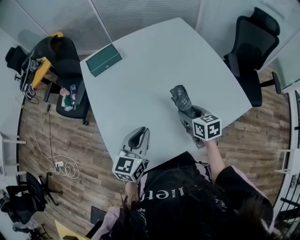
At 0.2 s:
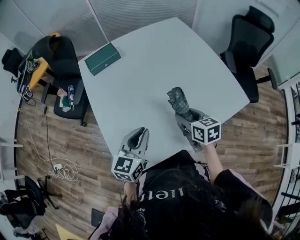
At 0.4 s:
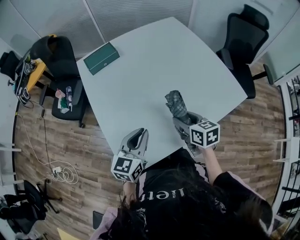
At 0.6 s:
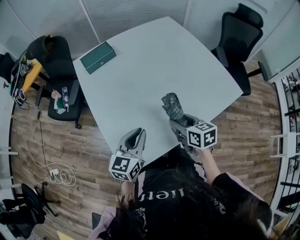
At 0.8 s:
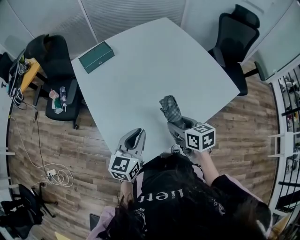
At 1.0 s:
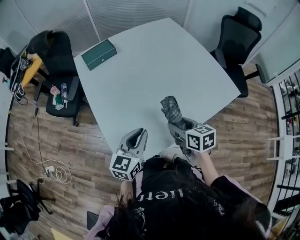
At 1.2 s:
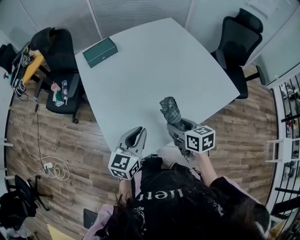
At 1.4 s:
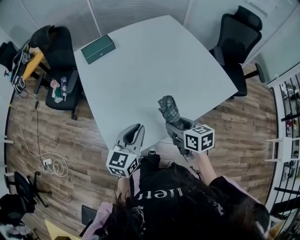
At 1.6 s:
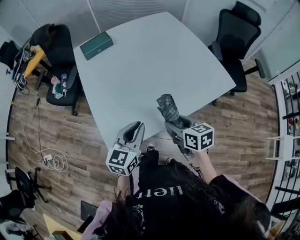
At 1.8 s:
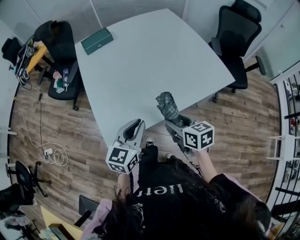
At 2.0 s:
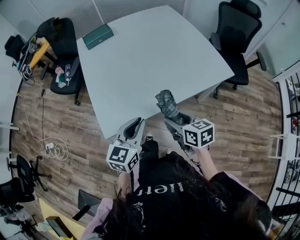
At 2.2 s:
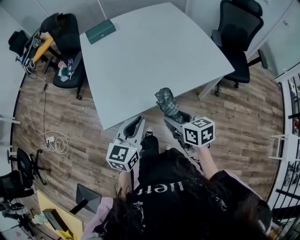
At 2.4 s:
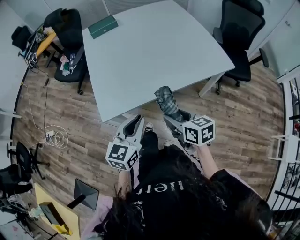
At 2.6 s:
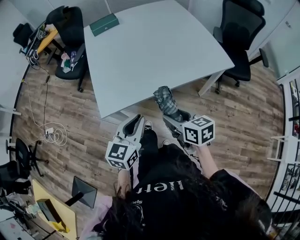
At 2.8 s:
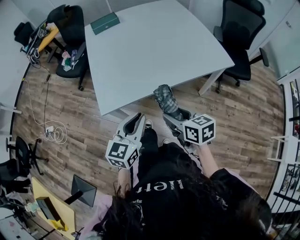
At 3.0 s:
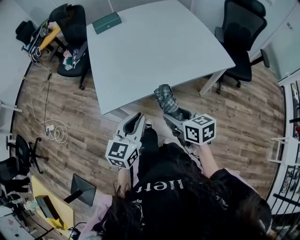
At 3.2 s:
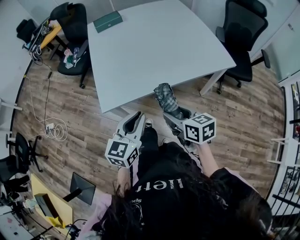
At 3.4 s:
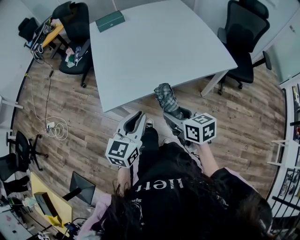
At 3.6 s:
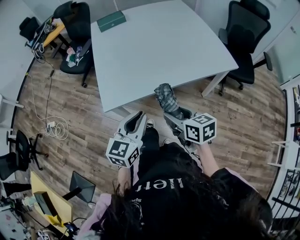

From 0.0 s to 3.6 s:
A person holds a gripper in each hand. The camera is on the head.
From 0.0 s to 1.8 s: The two grippers go some 20 cm backward.
From 1.8 s to 3.6 s: The grippers both shift backward by approximately 15 cm.

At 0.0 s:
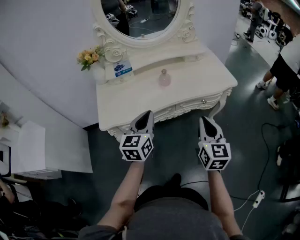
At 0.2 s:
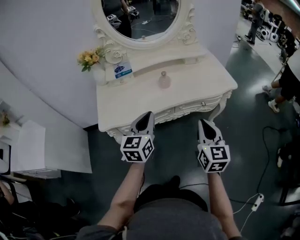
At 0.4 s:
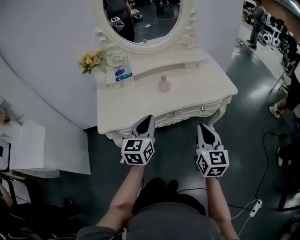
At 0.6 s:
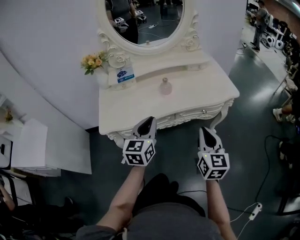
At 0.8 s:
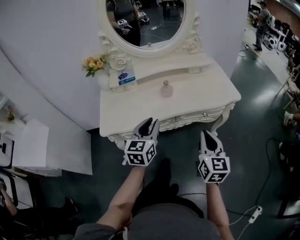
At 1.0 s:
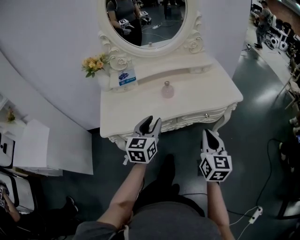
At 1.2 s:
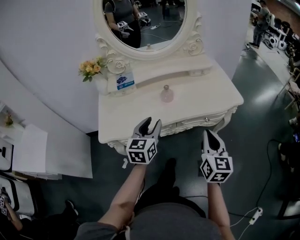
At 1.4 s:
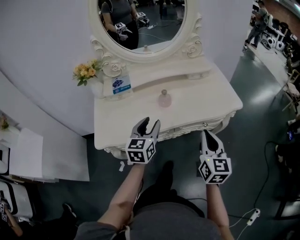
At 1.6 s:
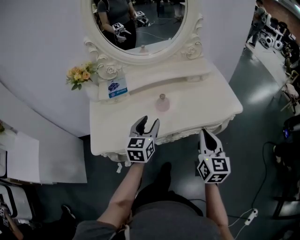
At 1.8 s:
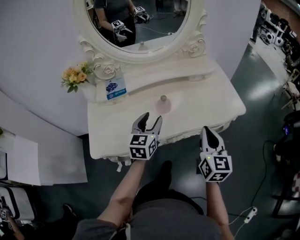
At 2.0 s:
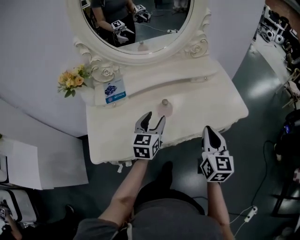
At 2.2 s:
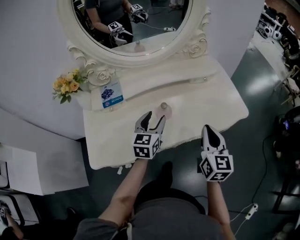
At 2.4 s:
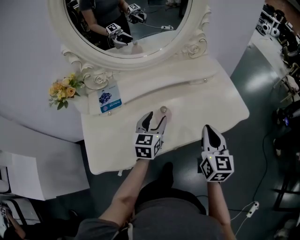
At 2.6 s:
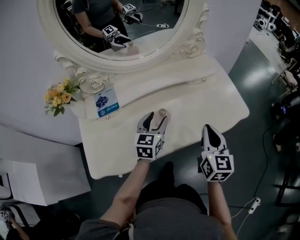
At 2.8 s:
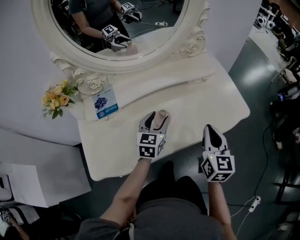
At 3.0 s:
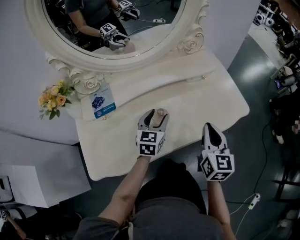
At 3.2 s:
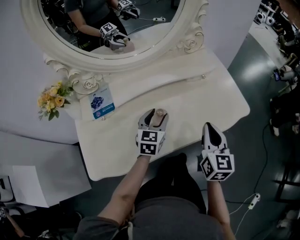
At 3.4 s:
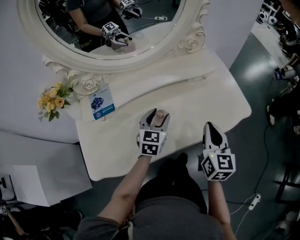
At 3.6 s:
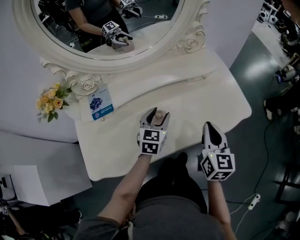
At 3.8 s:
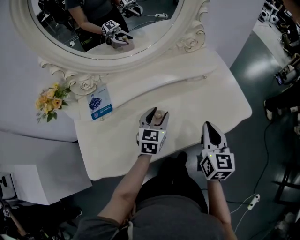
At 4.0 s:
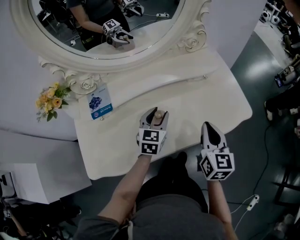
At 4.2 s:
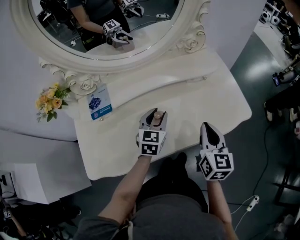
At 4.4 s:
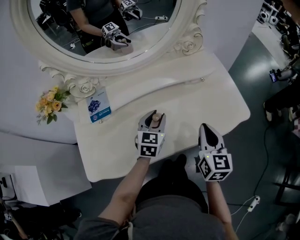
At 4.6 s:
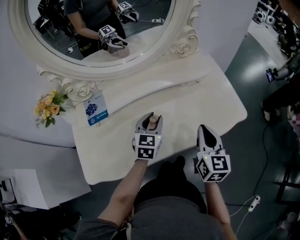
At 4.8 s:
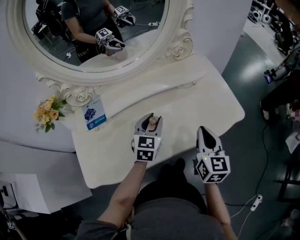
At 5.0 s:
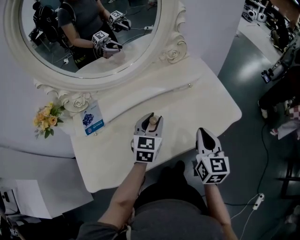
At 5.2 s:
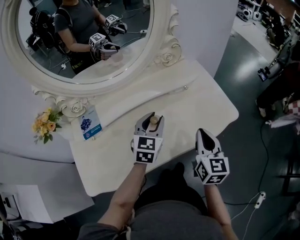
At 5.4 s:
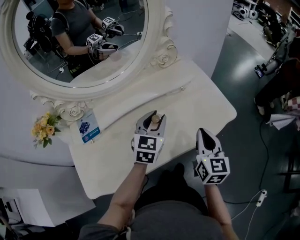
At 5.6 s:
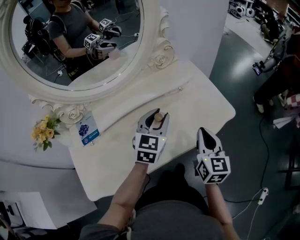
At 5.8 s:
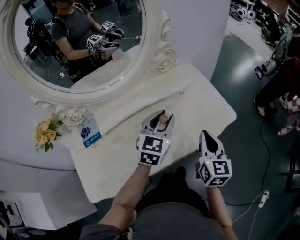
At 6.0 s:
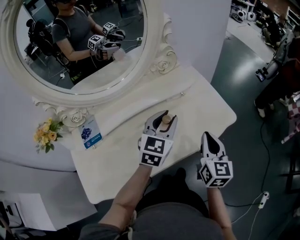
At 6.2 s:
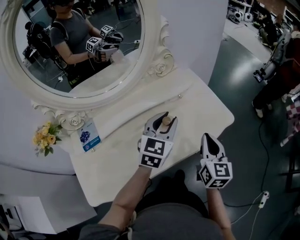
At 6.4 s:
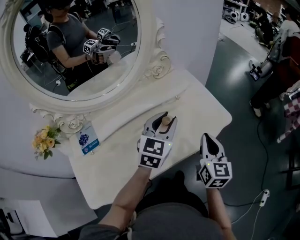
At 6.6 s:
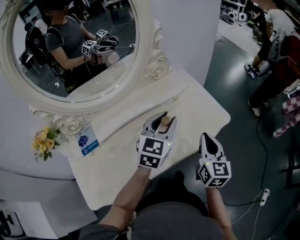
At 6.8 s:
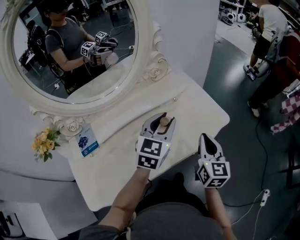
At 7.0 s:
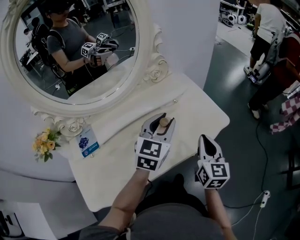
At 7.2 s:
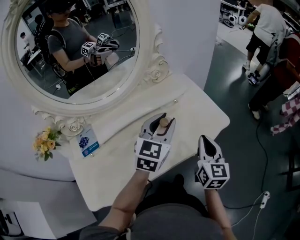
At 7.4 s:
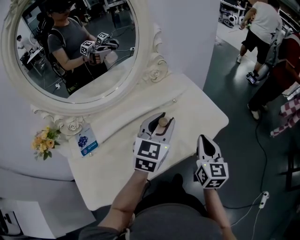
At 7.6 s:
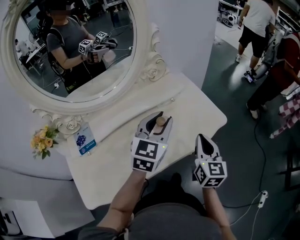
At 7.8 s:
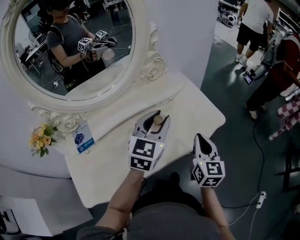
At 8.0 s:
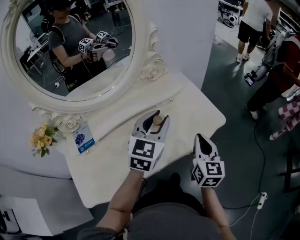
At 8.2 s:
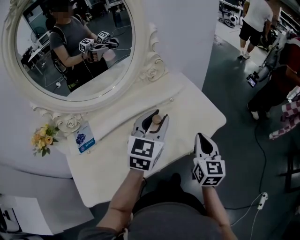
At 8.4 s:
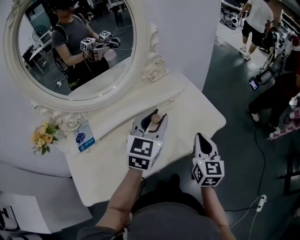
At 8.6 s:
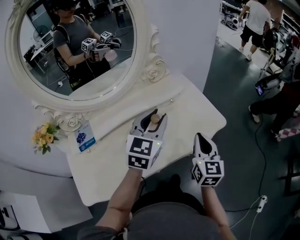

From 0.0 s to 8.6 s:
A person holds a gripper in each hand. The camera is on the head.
From 0.0 s to 1.4 s: The two grippers go approximately 10 cm forward. The left gripper opens its fingers.
From 1.4 s to 2.8 s: The grippers both shift forward by roughly 20 cm.
From 2.8 s to 4.4 s: The left gripper closes its fingers.
From 4.4 s to 5.8 s: The right gripper is displaced to the right by about 5 cm, while the left gripper is displaced upward and to the right by some 15 cm.
From 5.8 s to 7.2 s: The left gripper goes approximately 5 cm upward.
From 7.2 s to 8.6 s: The grippers make only small movements.

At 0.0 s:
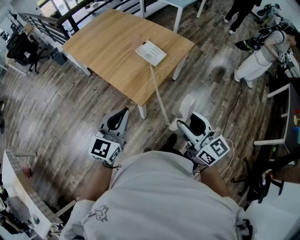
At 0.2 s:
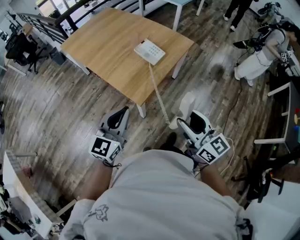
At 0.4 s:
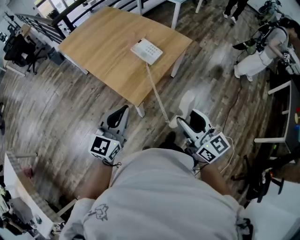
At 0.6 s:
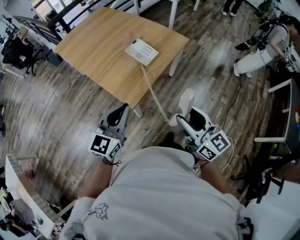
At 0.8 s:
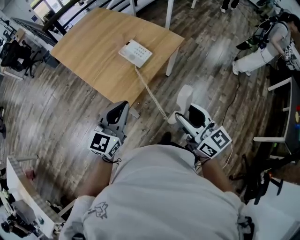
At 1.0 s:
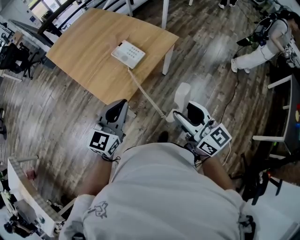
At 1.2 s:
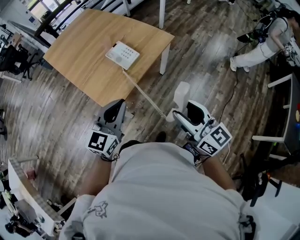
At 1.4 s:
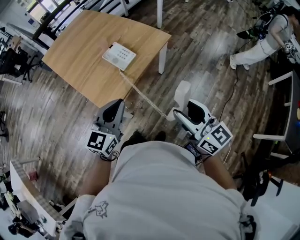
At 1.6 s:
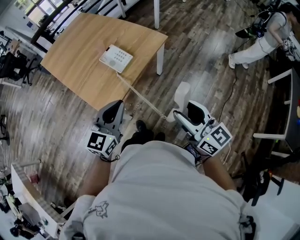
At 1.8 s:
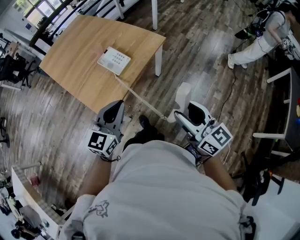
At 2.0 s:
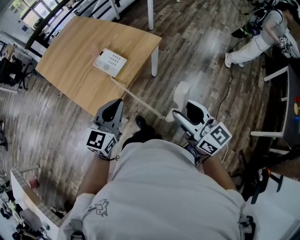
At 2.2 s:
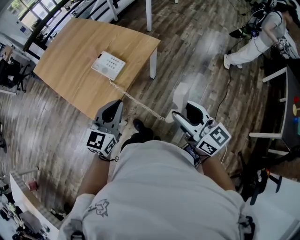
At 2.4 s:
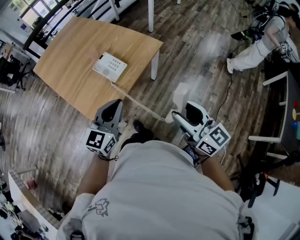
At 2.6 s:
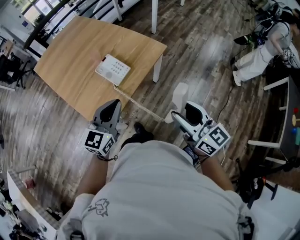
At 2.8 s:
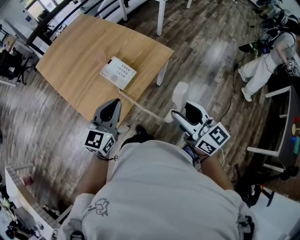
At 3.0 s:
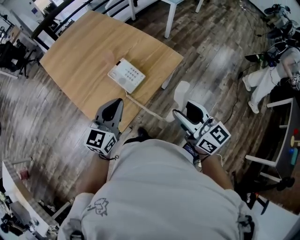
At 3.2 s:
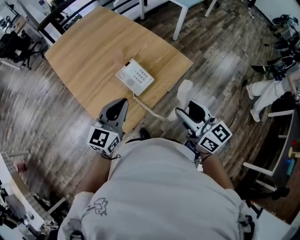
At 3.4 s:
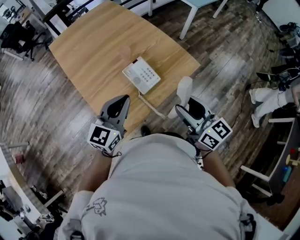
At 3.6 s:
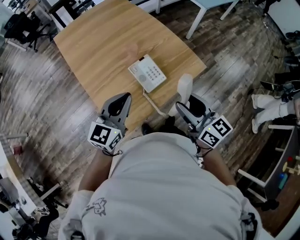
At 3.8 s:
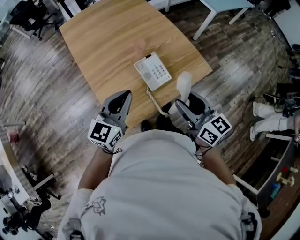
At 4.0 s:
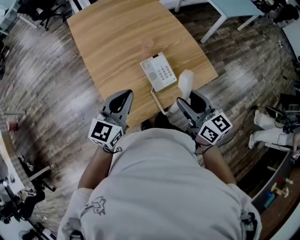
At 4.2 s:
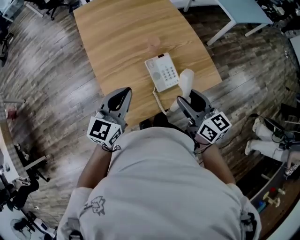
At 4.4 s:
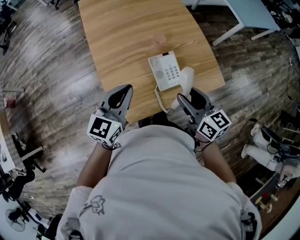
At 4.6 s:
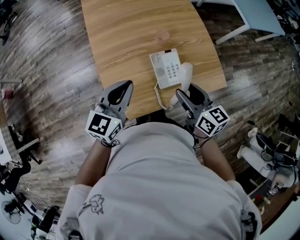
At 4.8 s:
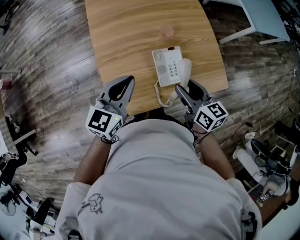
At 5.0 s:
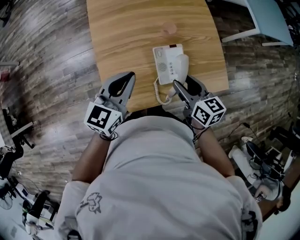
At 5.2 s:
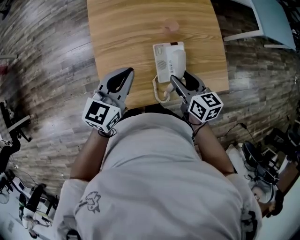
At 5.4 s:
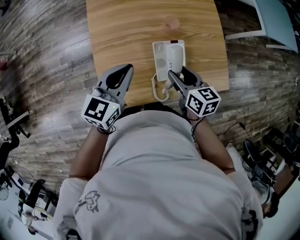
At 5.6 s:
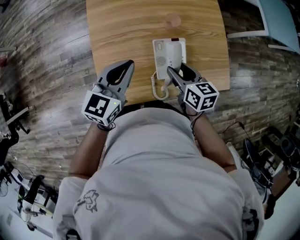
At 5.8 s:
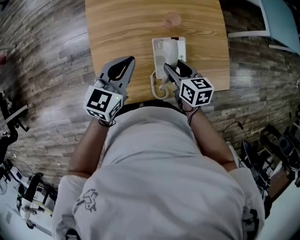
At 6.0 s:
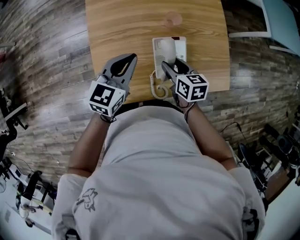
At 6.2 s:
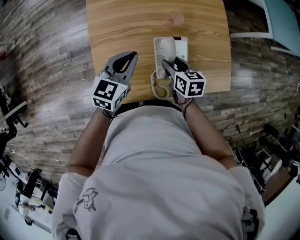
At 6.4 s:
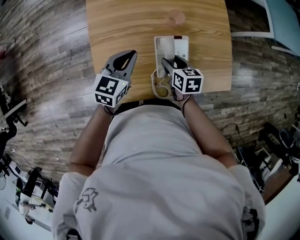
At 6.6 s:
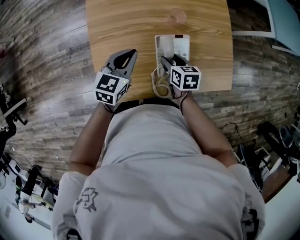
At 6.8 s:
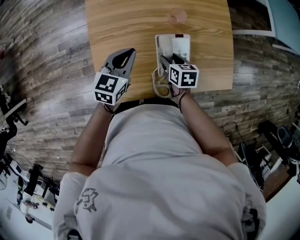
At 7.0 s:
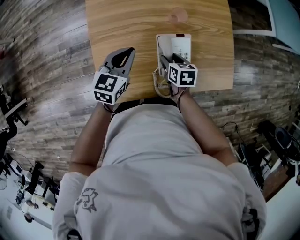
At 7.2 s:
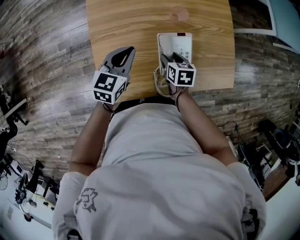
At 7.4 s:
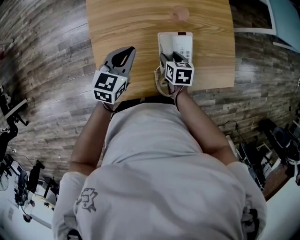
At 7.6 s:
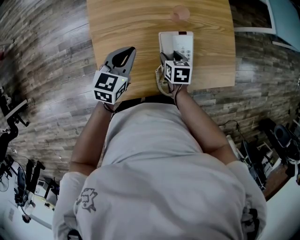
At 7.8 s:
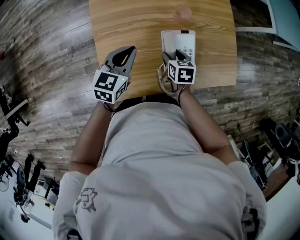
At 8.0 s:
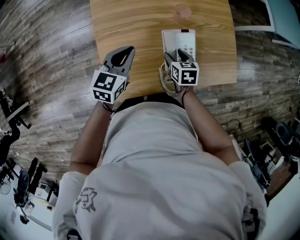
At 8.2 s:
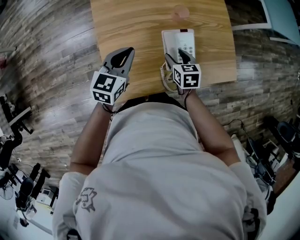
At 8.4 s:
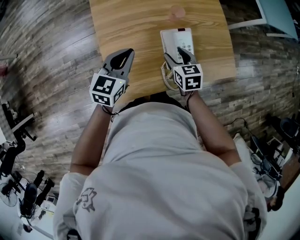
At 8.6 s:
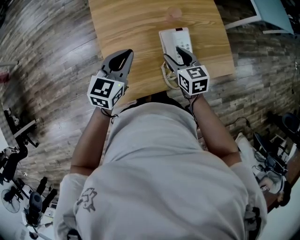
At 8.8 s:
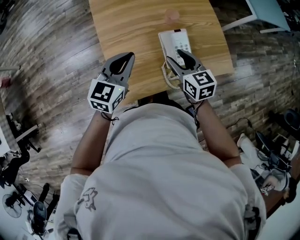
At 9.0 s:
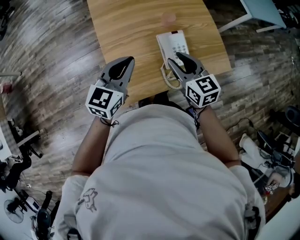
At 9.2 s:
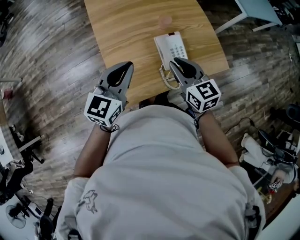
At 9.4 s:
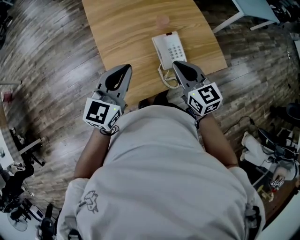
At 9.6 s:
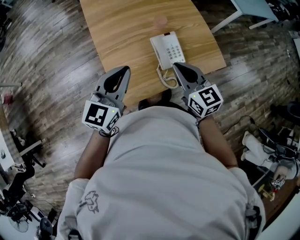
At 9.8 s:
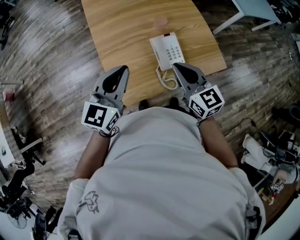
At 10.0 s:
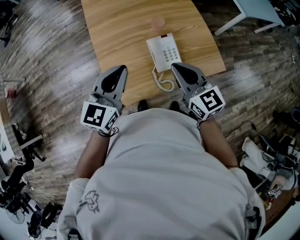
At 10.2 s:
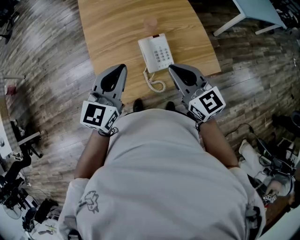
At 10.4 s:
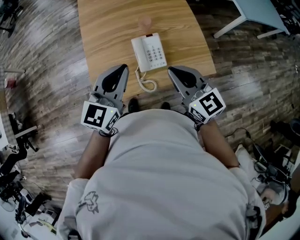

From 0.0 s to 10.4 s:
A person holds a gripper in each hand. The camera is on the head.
From 0.0 s to 1.4 s: Both grippers travel together to the right and forward, about 25 cm.
From 1.4 s to 3.0 s: Both grippers move forward, some 20 cm.
From 3.0 s to 4.4 s: The right gripper goes approximately 25 cm forward, to the left and downward, and rotates some 30 degrees. Meanwhile the left gripper is displaced to the left and forward by about 15 cm, and swivels roughly 20 degrees.
From 4.4 s to 6.0 s: The left gripper goes about 15 cm downward and forward, while the right gripper is displaced downward and forward by roughly 20 cm, and swivels roughly 30 degrees.
From 6.0 s to 7.4 s: Both grippers travel together downward, some 10 cm.
From 7.4 s to 9.0 s: Both grippers move upward and backward, some 20 cm. The right gripper points its fingers approximately 30 degrees further upward.
From 9.0 s to 10.4 s: The right gripper heads to the right, upward and backward, covering roughly 15 cm, and closes; the left gripper goes roughly 15 cm to the right.

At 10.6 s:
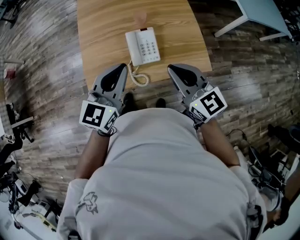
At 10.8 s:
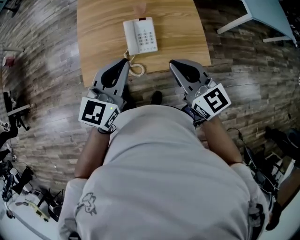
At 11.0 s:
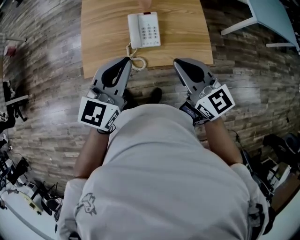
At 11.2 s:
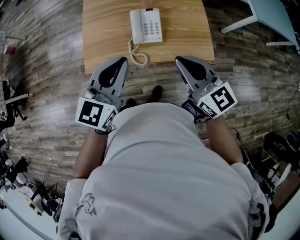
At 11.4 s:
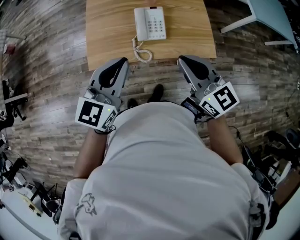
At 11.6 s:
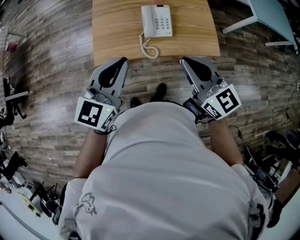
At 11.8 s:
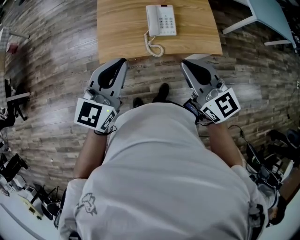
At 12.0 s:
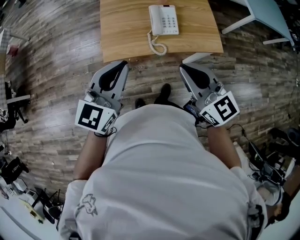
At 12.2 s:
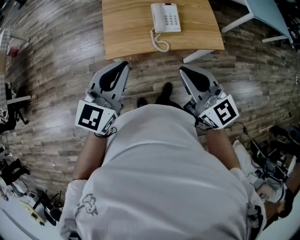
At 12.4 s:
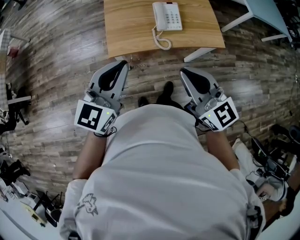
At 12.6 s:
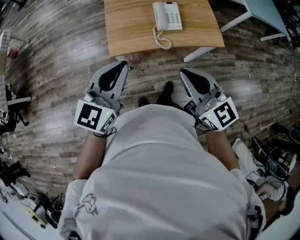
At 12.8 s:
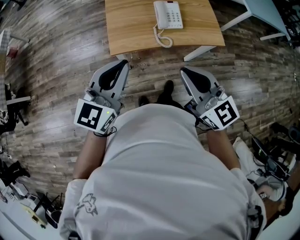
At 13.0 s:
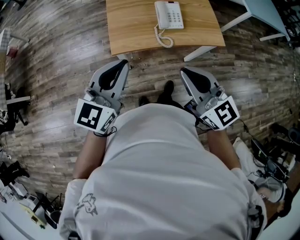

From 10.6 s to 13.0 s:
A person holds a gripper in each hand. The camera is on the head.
From 10.6 s to 11.8 s: The grippers both shift backward and to the left by roughly 15 cm.
From 11.8 s to 13.0 s: The left gripper heads to the left and backward, covering approximately 10 cm. Meanwhile the right gripper travels backward and to the left by roughly 15 cm.
